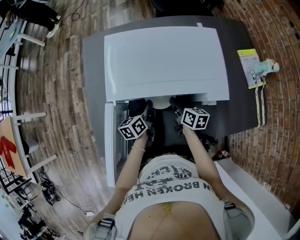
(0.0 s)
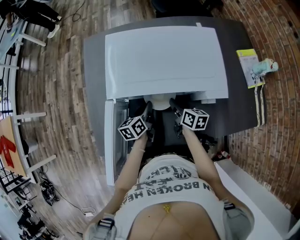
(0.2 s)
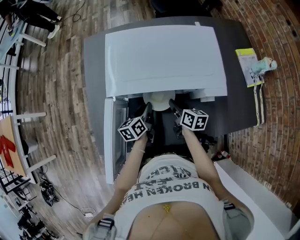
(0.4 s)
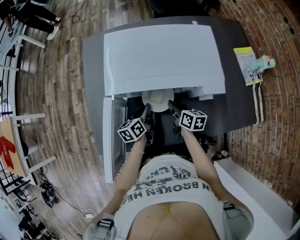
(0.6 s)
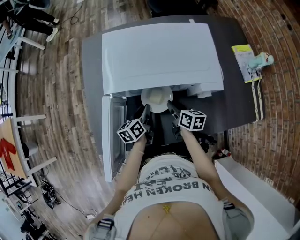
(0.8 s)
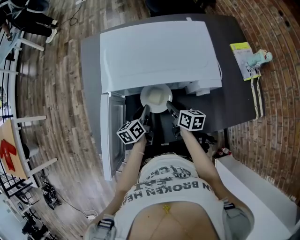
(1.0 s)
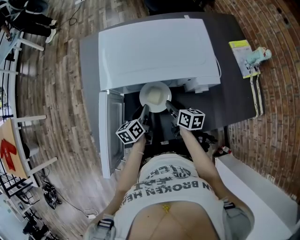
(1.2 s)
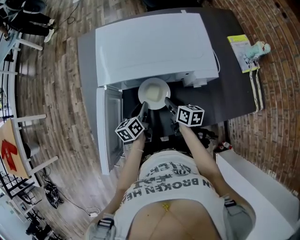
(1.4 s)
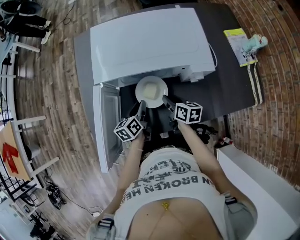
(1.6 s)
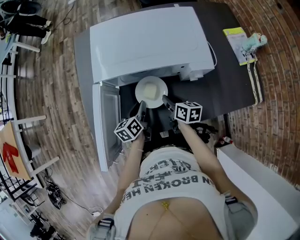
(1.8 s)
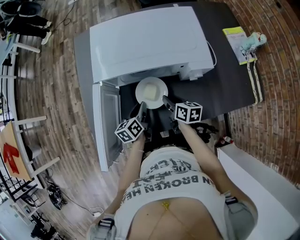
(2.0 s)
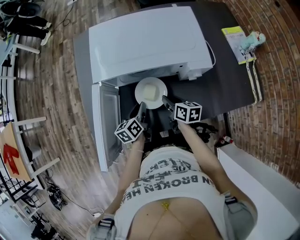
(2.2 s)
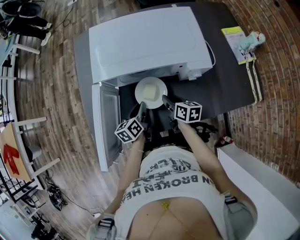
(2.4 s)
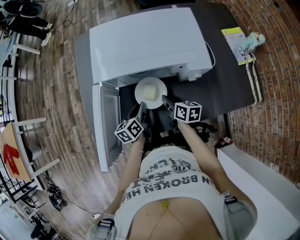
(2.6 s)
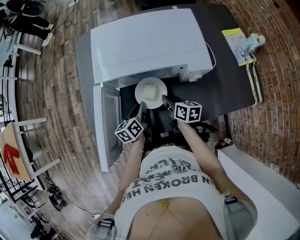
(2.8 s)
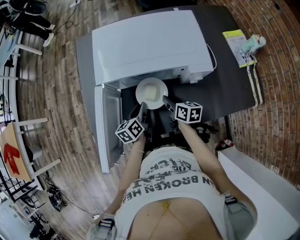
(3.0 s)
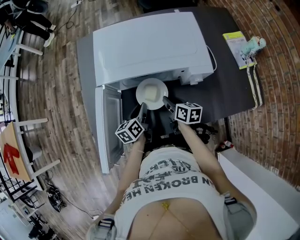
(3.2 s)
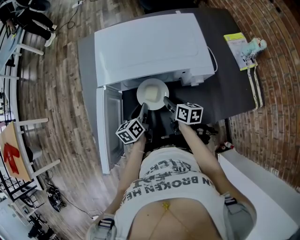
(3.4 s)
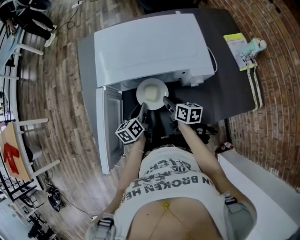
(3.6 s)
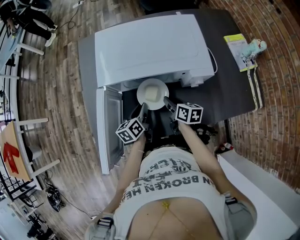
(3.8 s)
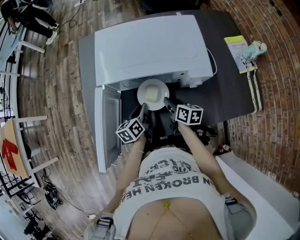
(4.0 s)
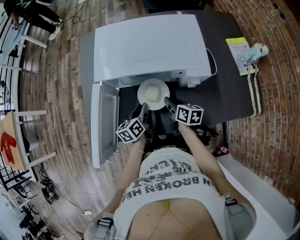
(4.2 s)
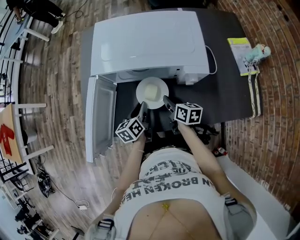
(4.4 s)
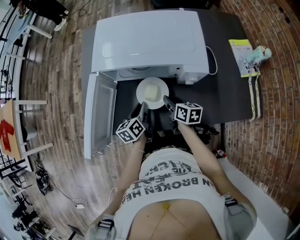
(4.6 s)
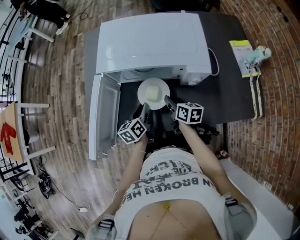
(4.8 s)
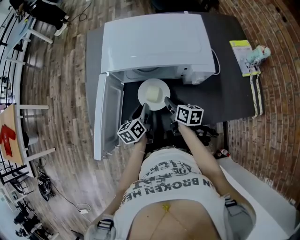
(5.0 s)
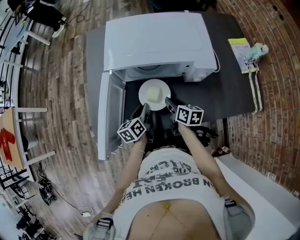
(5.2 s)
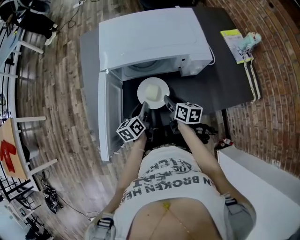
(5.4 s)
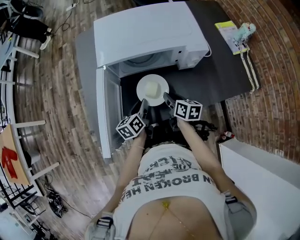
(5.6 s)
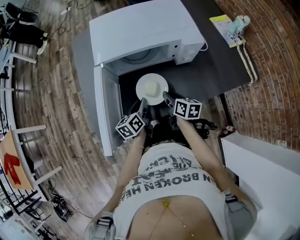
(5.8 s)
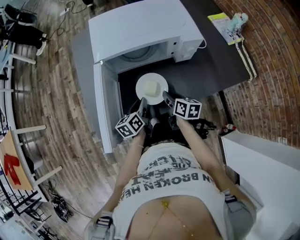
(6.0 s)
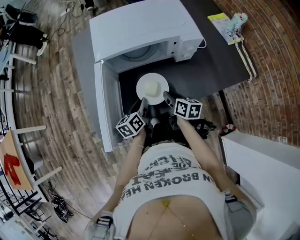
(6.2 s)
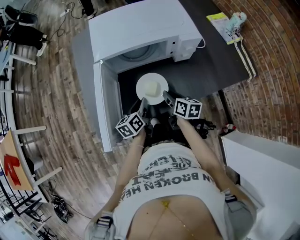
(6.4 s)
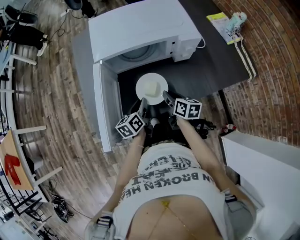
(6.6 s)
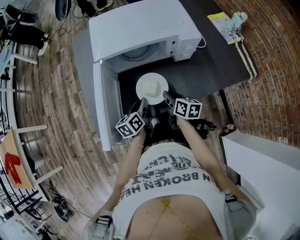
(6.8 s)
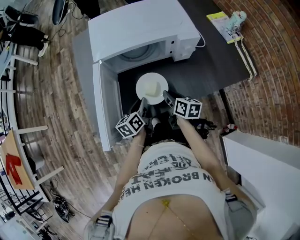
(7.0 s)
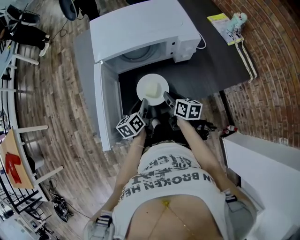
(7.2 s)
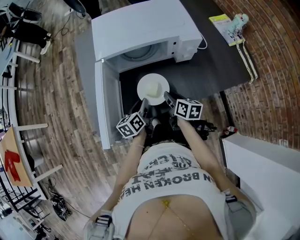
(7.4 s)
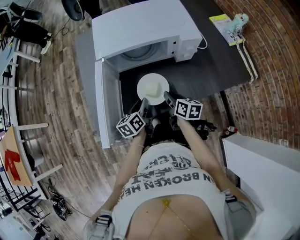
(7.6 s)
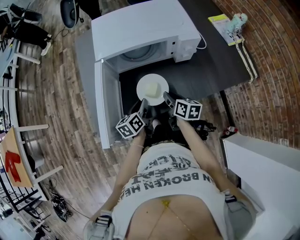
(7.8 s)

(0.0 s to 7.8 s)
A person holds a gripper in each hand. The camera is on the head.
0.0 s - 1.6 s: The grippers both shift backward by about 10 cm.
1.6 s - 3.2 s: The grippers move only a little.
3.2 s - 4.6 s: The left gripper shifts by roughly 5 cm.
4.6 s - 6.2 s: The right gripper shifts roughly 10 cm backward and to the left; the left gripper shifts approximately 10 cm to the left and backward.
6.2 s - 7.8 s: The grippers make only small movements.

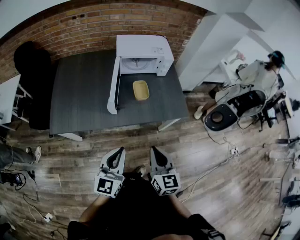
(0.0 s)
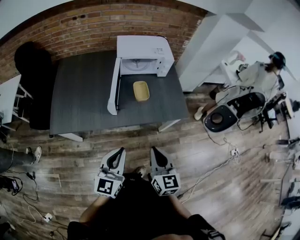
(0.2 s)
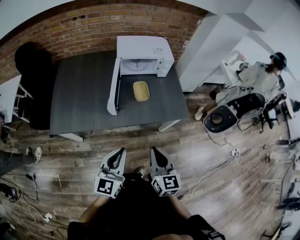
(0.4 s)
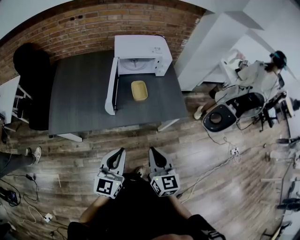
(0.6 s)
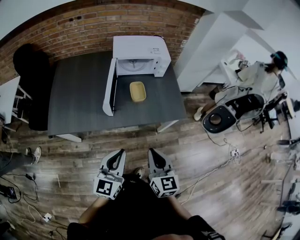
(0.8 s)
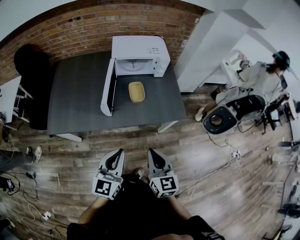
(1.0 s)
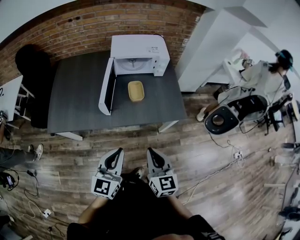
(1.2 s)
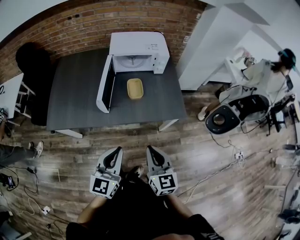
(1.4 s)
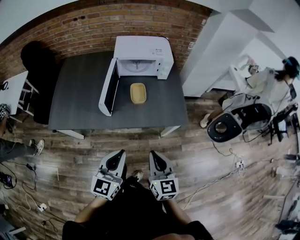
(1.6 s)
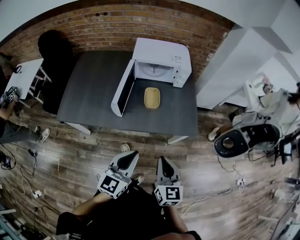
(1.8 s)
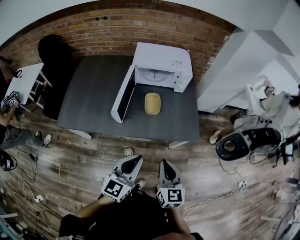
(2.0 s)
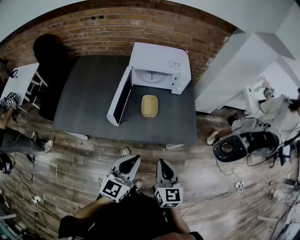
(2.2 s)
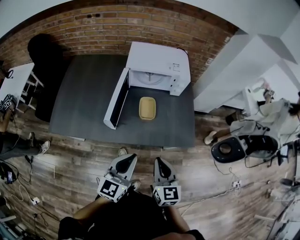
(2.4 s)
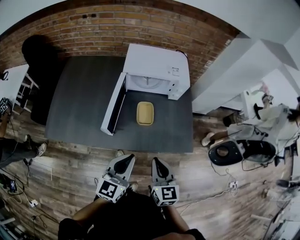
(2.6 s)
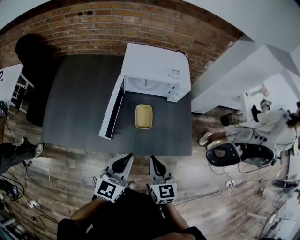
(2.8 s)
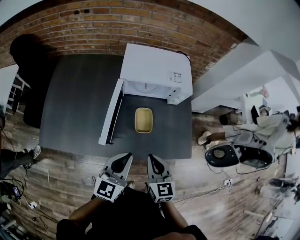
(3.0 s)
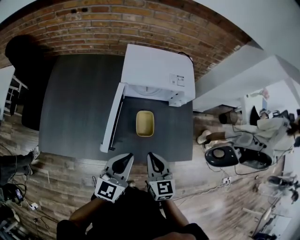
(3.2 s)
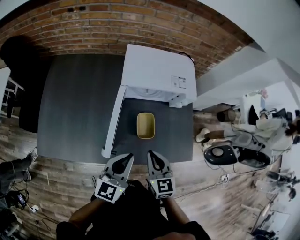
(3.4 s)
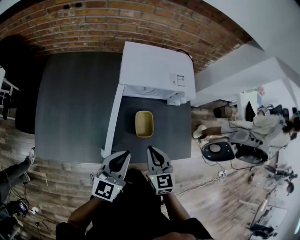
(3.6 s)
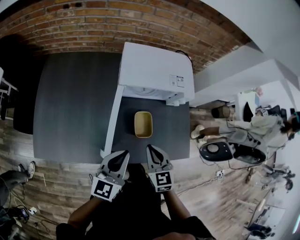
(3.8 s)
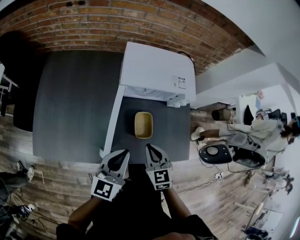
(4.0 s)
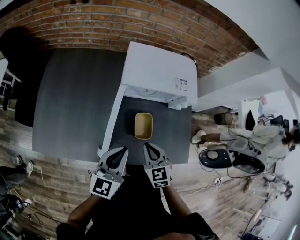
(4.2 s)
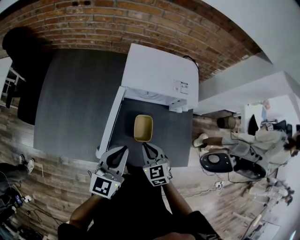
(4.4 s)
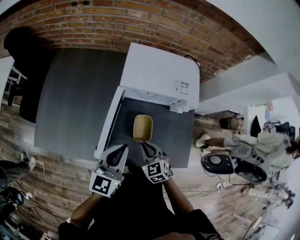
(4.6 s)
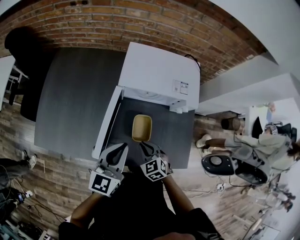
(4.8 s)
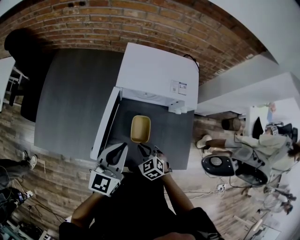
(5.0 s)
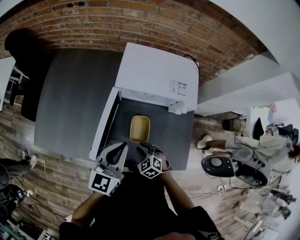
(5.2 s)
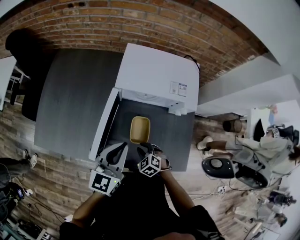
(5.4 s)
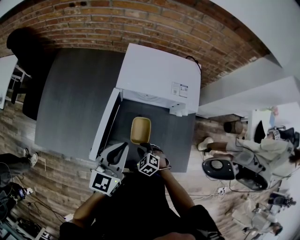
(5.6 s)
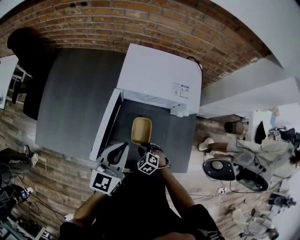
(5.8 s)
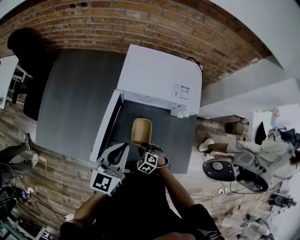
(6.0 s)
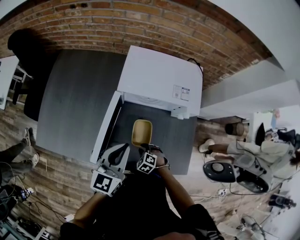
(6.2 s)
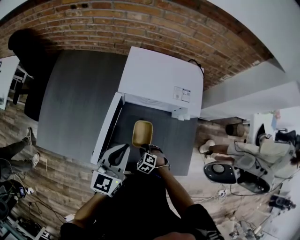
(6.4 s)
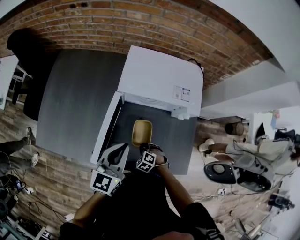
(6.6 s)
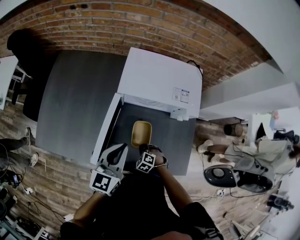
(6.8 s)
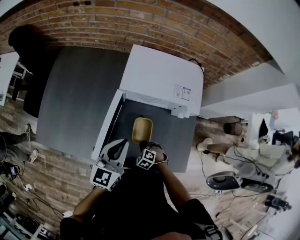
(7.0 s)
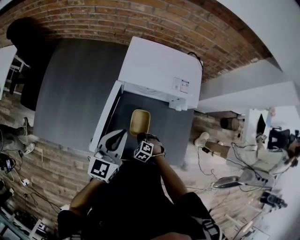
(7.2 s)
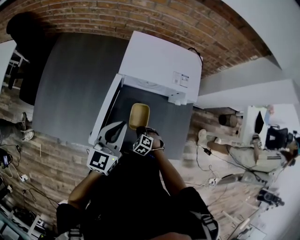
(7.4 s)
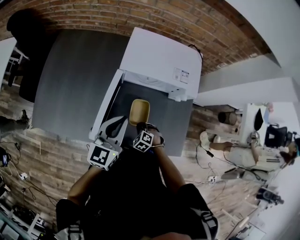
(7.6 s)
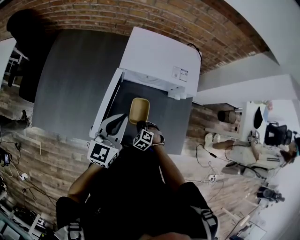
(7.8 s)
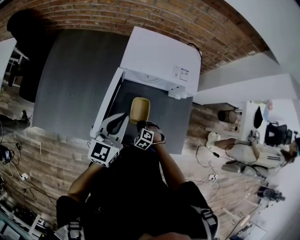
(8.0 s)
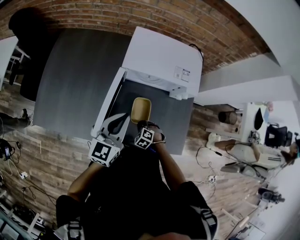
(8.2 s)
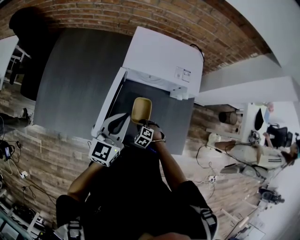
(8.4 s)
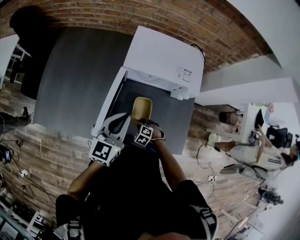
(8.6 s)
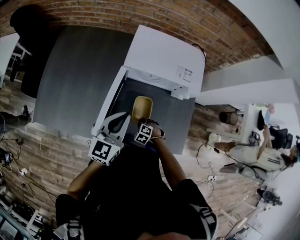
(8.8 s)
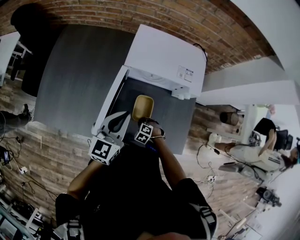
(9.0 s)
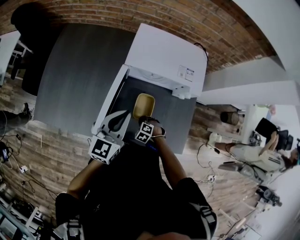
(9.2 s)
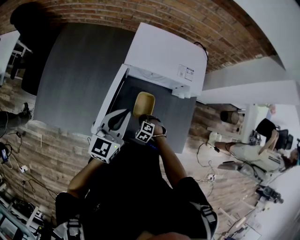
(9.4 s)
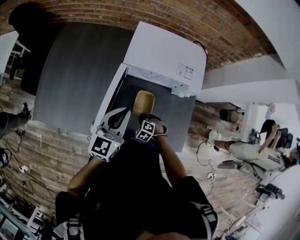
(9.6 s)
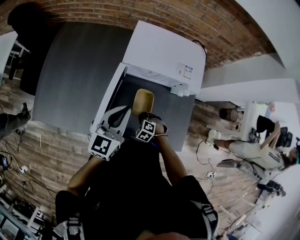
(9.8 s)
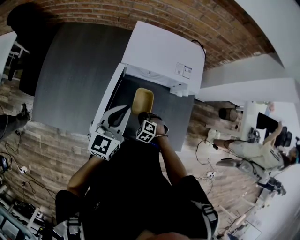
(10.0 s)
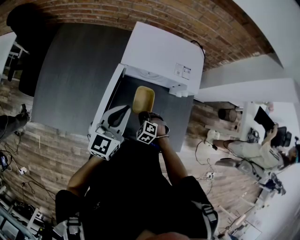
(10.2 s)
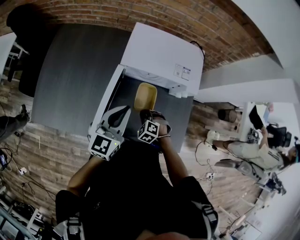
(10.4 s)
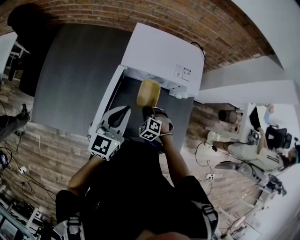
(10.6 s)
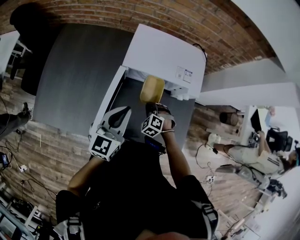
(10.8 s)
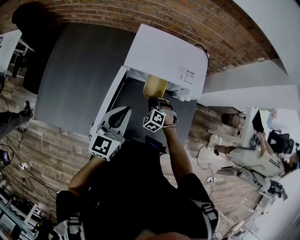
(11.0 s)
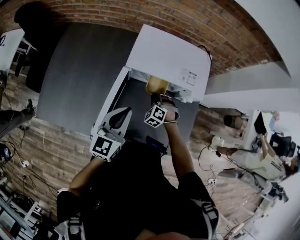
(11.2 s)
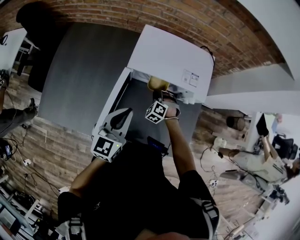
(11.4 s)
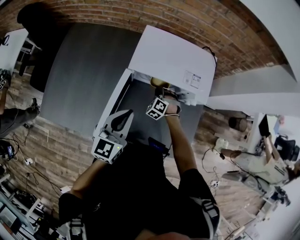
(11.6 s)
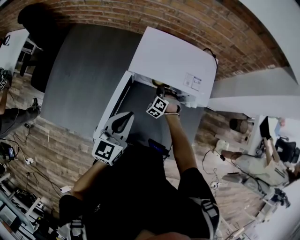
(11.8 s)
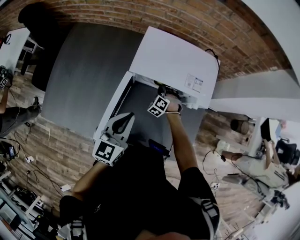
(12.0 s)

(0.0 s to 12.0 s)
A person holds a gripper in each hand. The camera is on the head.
0.0 s - 1.6 s: The two grippers go some 10 cm to the right.
1.6 s - 3.0 s: Both grippers move forward, about 25 cm.
3.0 s - 4.4 s: The right gripper heads forward and downward, covering about 15 cm, and turns by about 20 degrees. The left gripper goes roughly 10 cm forward.
4.4 s - 6.0 s: The right gripper moves downward, roughly 20 cm, and angles its fingers downward, by about 30 degrees. Meanwhile the left gripper moves some 5 cm.
6.0 s - 9.0 s: There are only small adjustments of the grippers.
9.0 s - 10.4 s: The right gripper goes about 10 cm upward.
10.4 s - 12.0 s: The right gripper moves forward, approximately 20 cm.

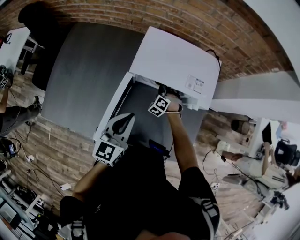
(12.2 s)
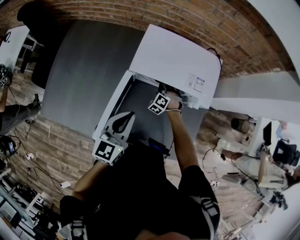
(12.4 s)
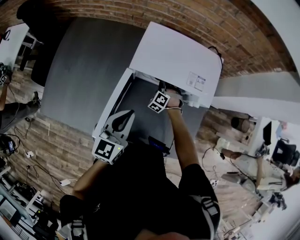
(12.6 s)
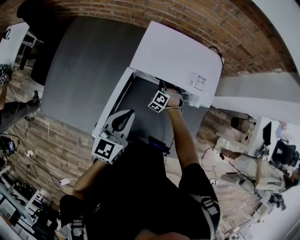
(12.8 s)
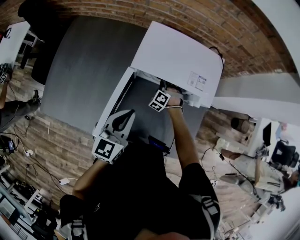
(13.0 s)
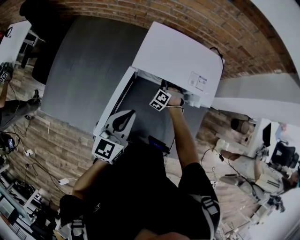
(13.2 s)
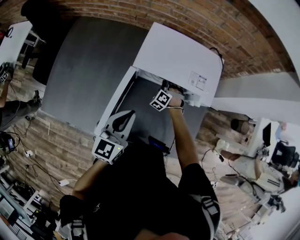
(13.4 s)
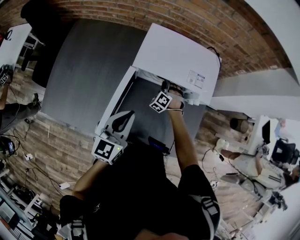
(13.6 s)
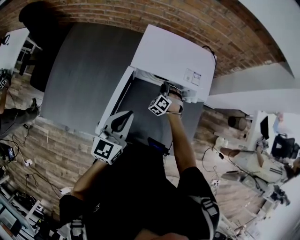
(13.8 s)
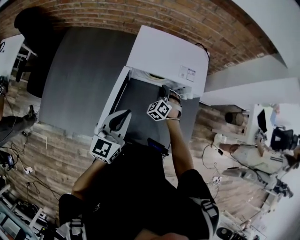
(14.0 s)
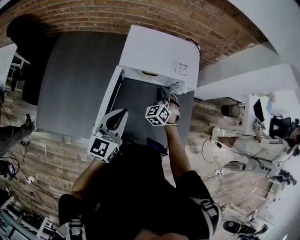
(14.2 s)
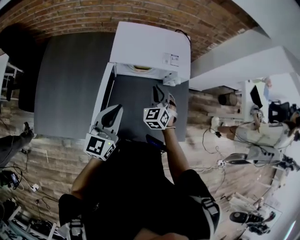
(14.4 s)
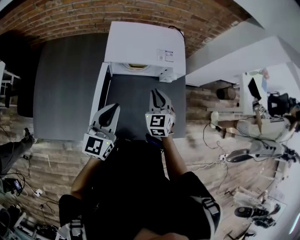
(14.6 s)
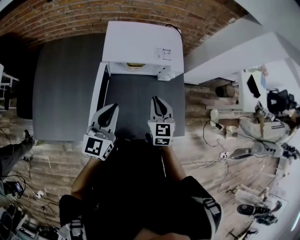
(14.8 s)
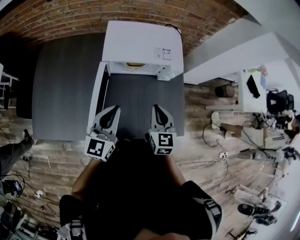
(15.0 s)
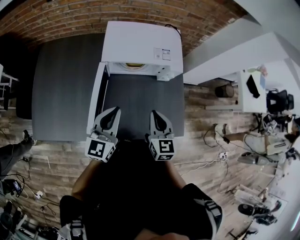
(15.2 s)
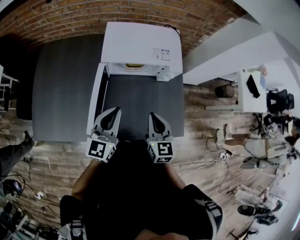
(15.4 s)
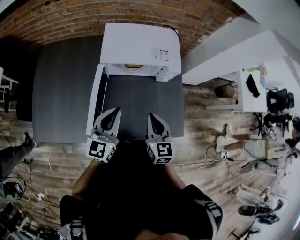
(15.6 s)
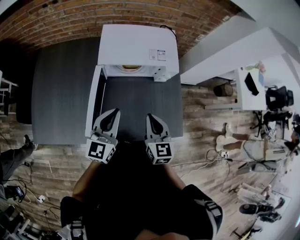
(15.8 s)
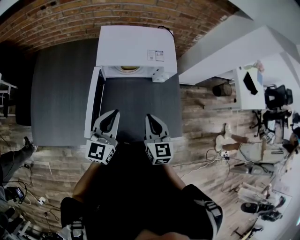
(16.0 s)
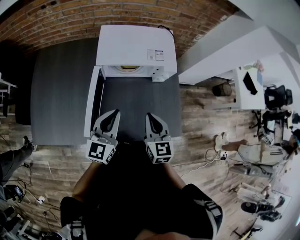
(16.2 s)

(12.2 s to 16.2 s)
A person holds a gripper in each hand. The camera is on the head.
12.2 s - 13.6 s: The grippers stay close to where they were, moving slightly.
13.6 s - 14.8 s: The right gripper moves upward, backward and to the right, some 30 cm, and twists about 70 degrees clockwise, seen from behind.
14.8 s - 16.2 s: The right gripper is displaced backward by about 5 cm.
